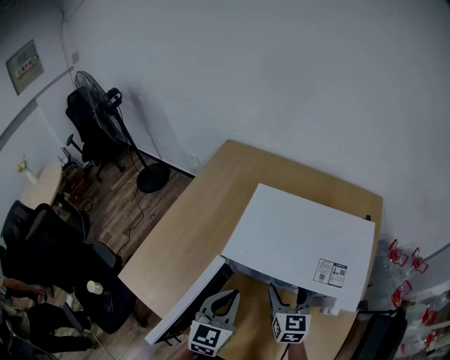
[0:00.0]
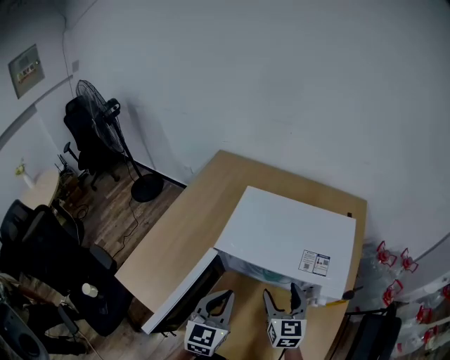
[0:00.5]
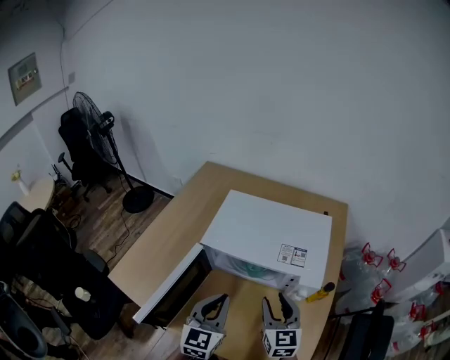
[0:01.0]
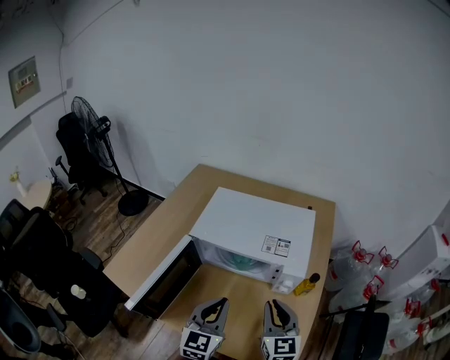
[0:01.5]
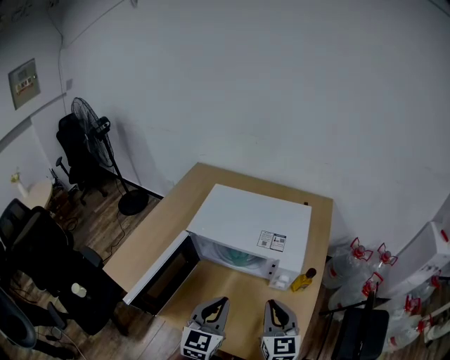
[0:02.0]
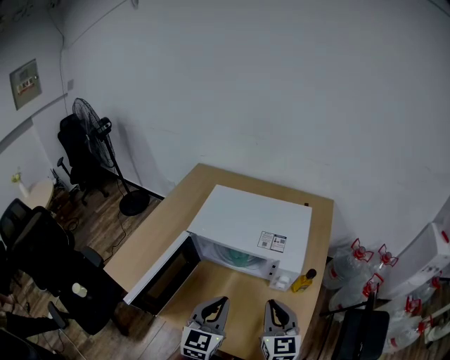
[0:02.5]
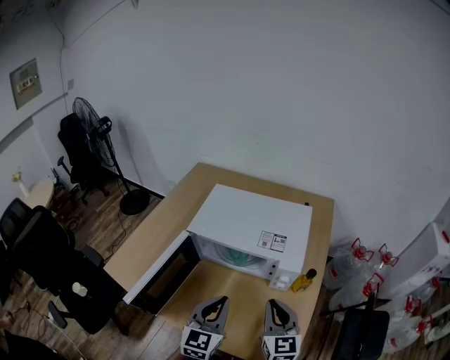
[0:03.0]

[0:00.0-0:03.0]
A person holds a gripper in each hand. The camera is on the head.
0:00.0 to 0:01.5: The two grippers go approximately 20 cm backward, to the right and upward. The right gripper closes.
0:01.5 to 0:03.0: There are only small adjustments of the grippers.

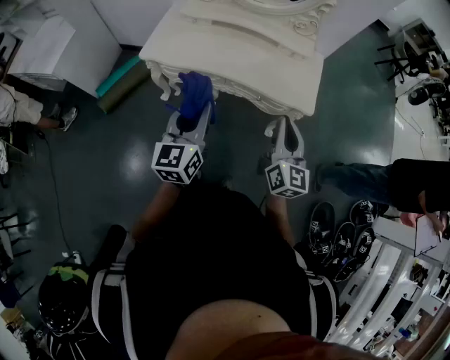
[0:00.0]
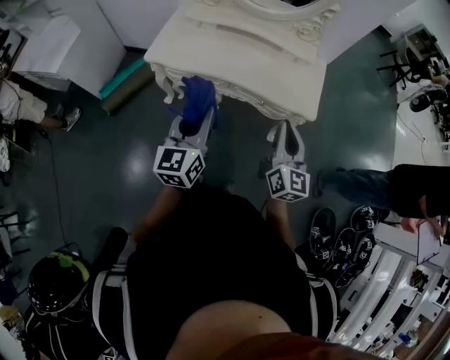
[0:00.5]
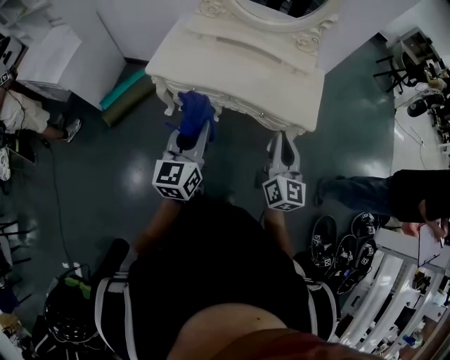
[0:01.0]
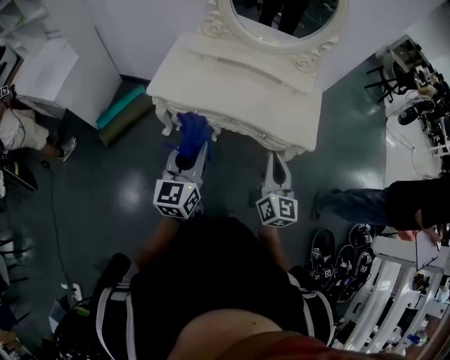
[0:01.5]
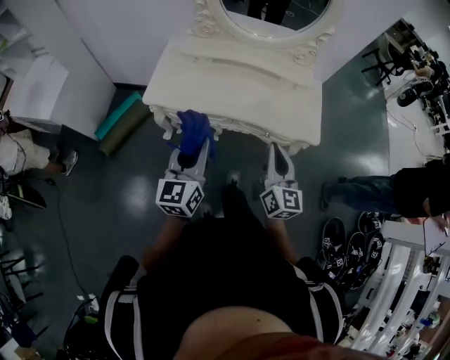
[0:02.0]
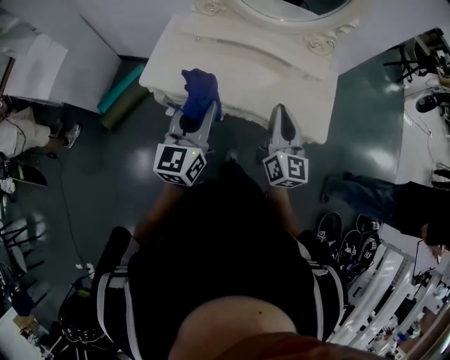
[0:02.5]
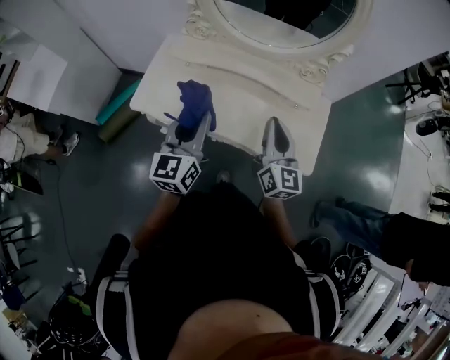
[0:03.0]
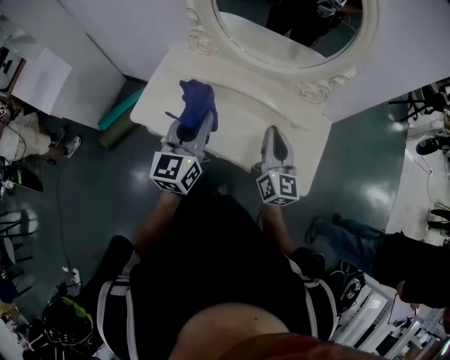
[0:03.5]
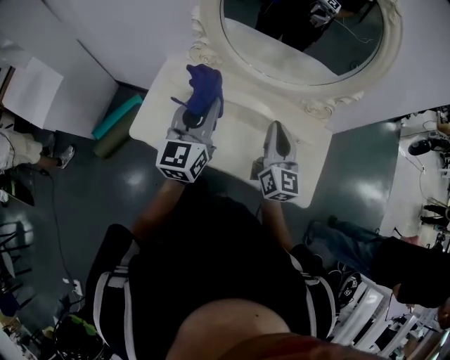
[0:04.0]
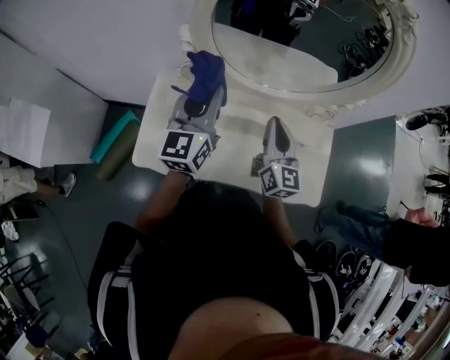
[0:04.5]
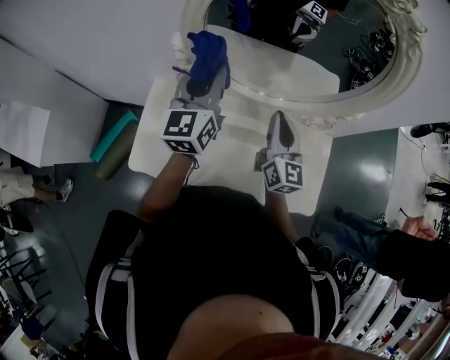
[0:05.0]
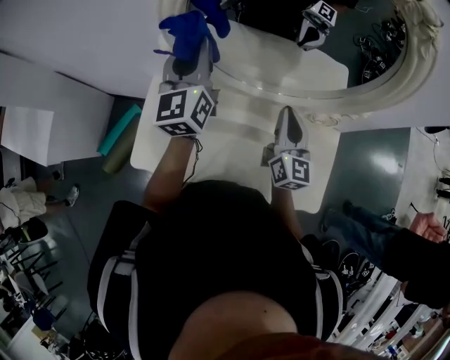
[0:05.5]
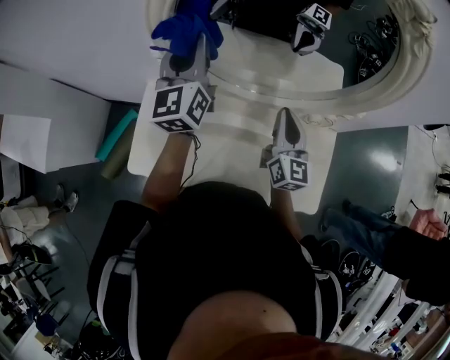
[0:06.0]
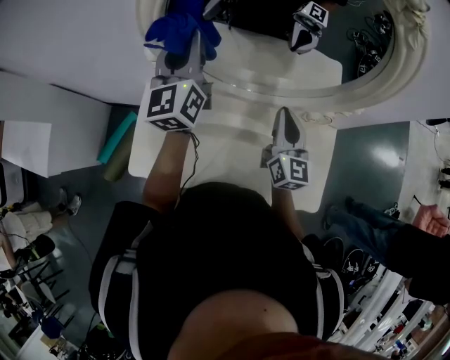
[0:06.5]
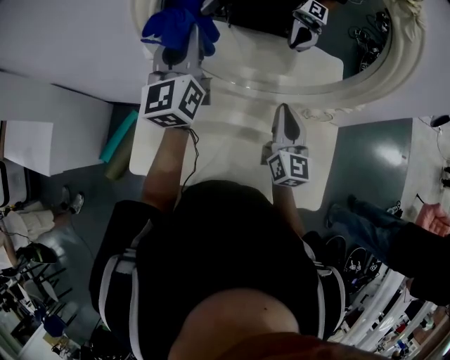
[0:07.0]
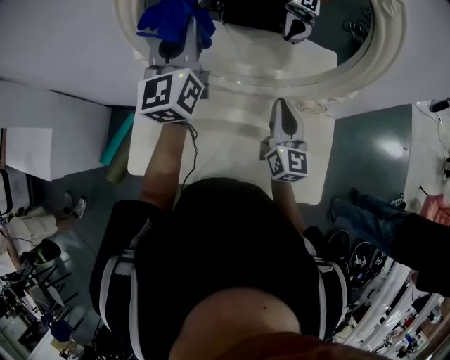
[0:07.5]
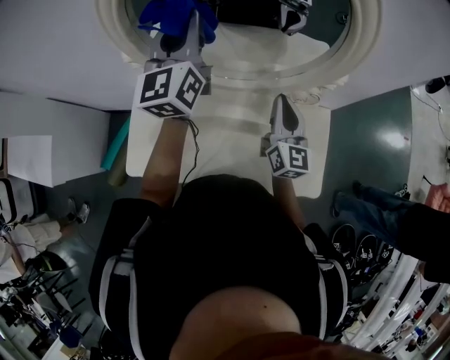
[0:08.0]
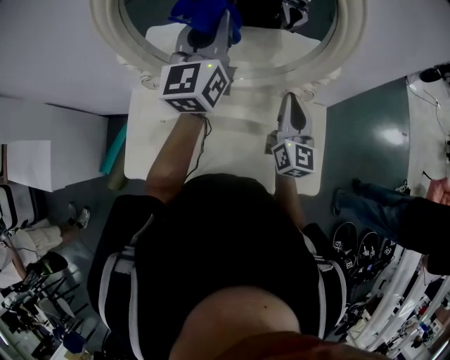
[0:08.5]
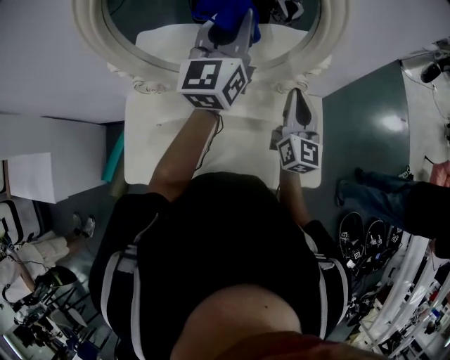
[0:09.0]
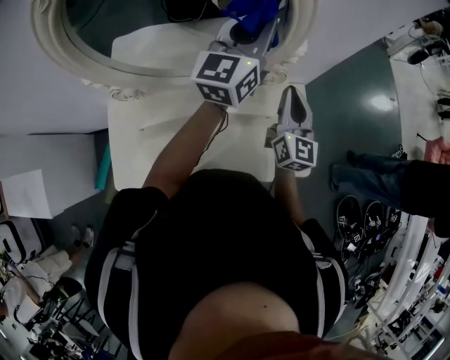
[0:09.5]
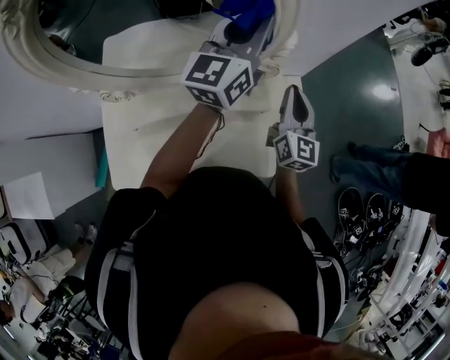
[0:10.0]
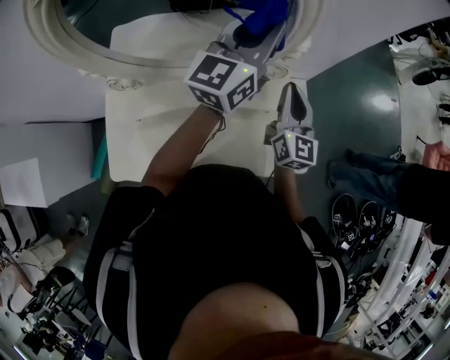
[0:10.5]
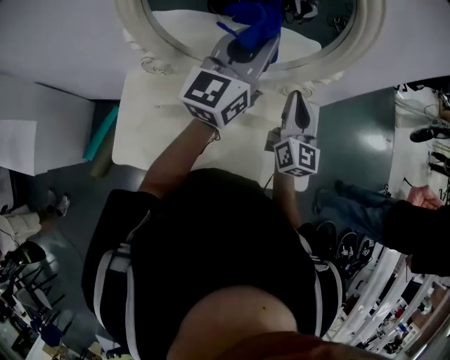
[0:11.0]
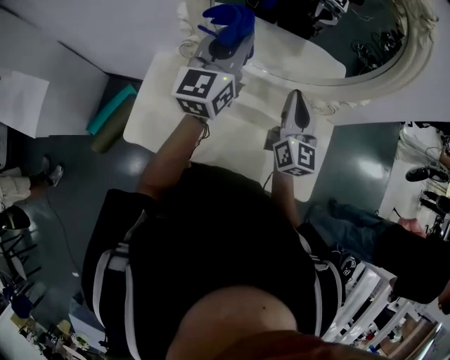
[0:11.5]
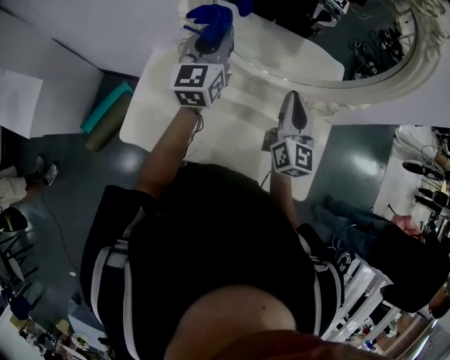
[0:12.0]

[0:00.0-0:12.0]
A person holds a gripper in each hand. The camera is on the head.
0:00.0 to 0:02.0: Both grippers move to the left and forward, about 10 cm.
0:02.0 to 0:04.0: The grippers both shift forward by some 35 cm.
0:04.0 to 0:06.0: The left gripper heads forward, covering approximately 25 cm. The right gripper heads forward, covering roughly 15 cm.
0:06.0 to 0:08.0: The grippers both shift to the right by some 10 cm.
0:08.0 to 0:10.0: The right gripper shifts by some 15 cm. Meanwhile the left gripper shifts by about 30 cm, and swivels about 30 degrees.
0:10.0 to 0:12.0: The right gripper ends up some 25 cm from where it was, and changes its angle by about 20 degrees, while the left gripper changes place by approximately 40 cm, and rotates about 40 degrees.

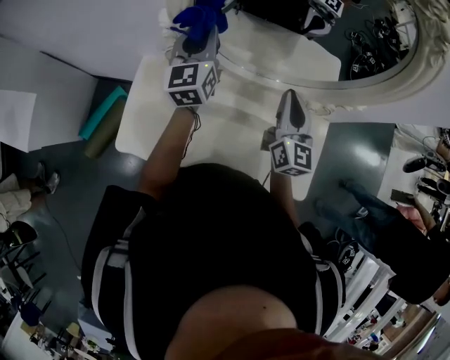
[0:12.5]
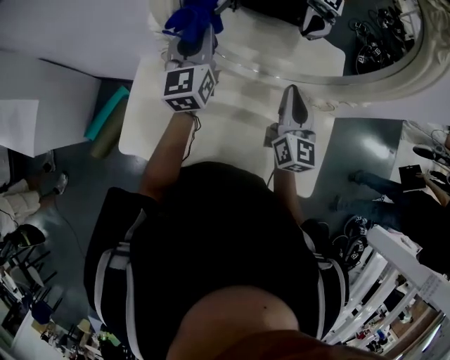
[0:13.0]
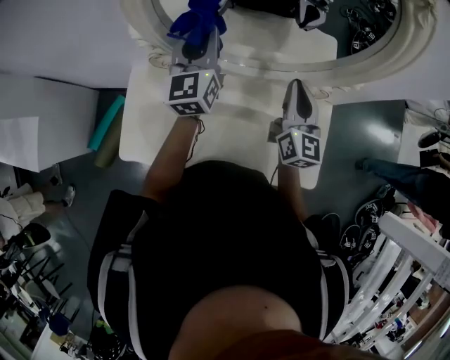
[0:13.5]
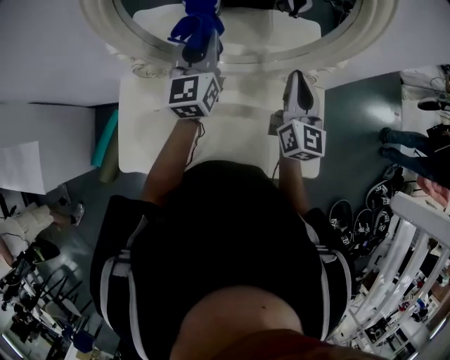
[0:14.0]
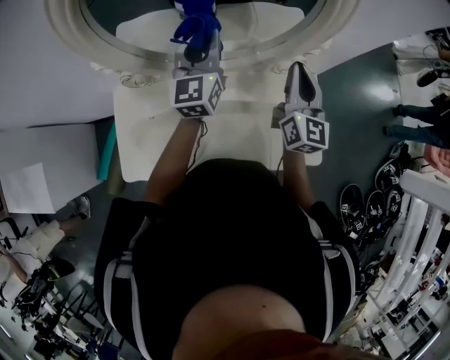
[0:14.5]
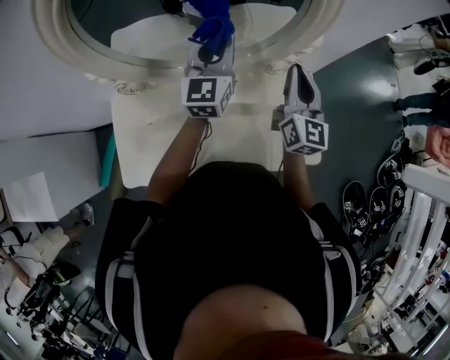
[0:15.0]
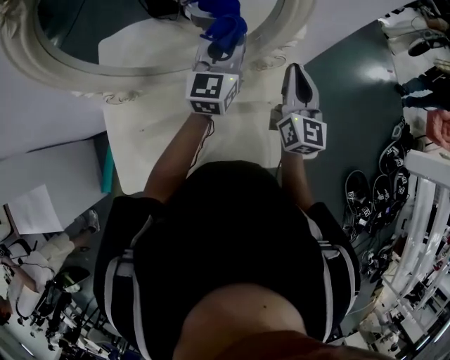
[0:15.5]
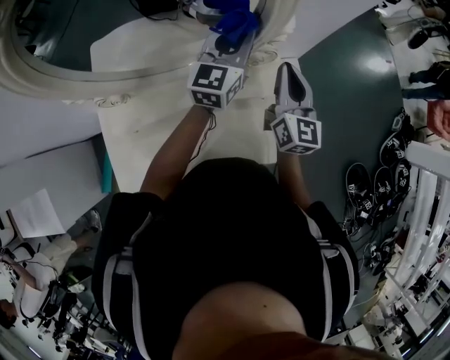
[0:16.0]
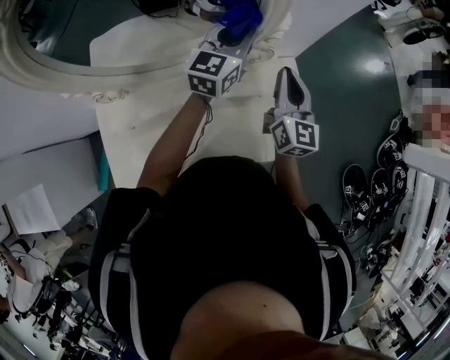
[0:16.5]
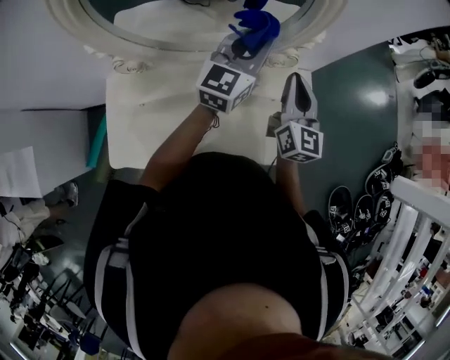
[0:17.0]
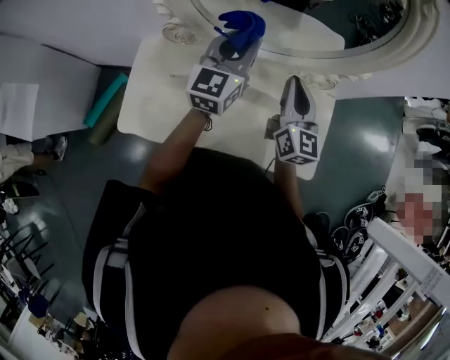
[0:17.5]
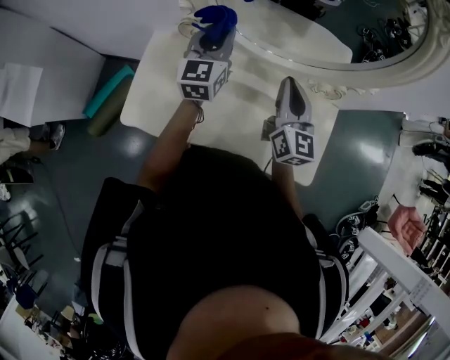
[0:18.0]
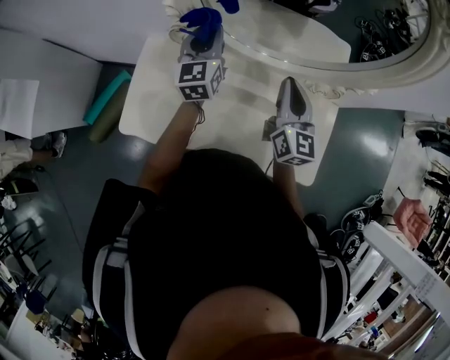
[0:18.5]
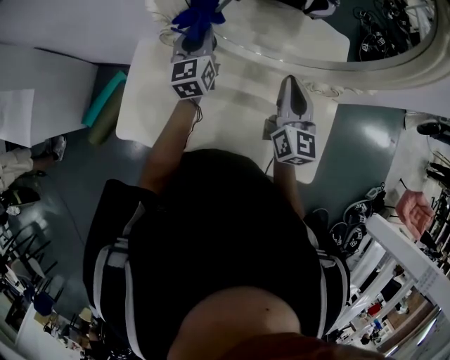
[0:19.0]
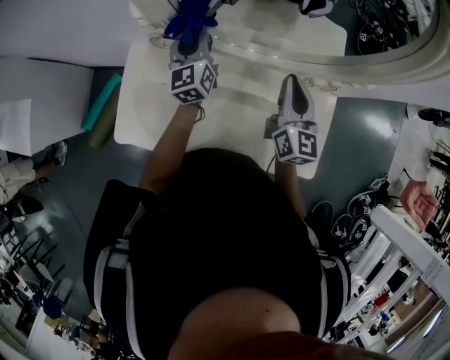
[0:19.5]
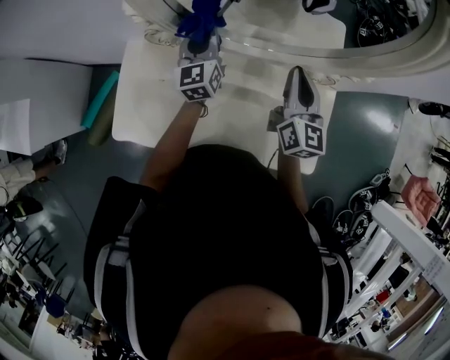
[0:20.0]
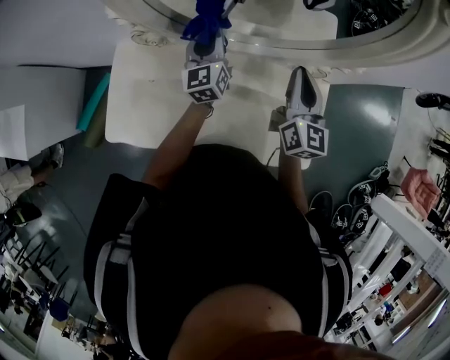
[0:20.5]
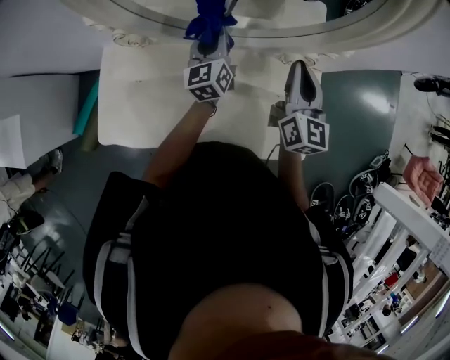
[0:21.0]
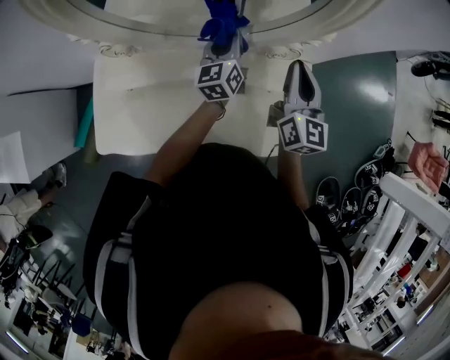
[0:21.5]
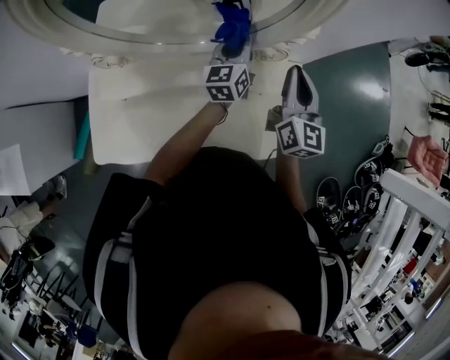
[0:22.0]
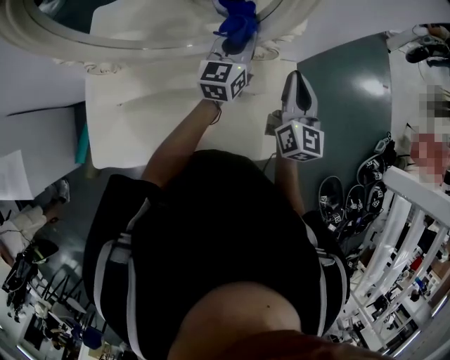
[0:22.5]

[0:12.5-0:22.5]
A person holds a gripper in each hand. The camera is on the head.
0:12.5 to 0:14.5: The two grippers go approximately 15 cm to the right.
0:14.5 to 0:16.5: The right gripper shifts about 10 cm to the right. The left gripper shifts approximately 20 cm to the right, and rotates some 30 degrees.
0:16.5 to 0:18.5: The right gripper moves some 25 cm, and changes its angle by approximately 30 degrees. The left gripper changes place by approximately 40 cm, and rotates some 50 degrees.
0:18.5 to 0:20.5: The left gripper goes approximately 10 cm to the right and downward. The right gripper moves to the right, some 10 cm.
0:20.5 to 0:22.5: The right gripper moves to the right, about 15 cm. Meanwhile the left gripper goes approximately 25 cm to the right, and turns by roughly 30 degrees.

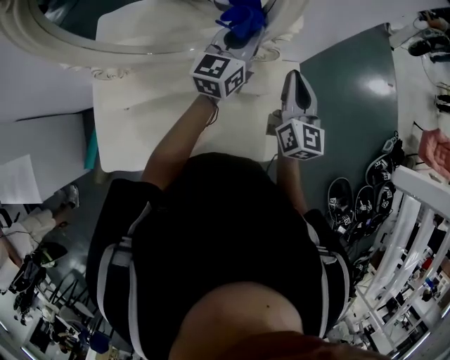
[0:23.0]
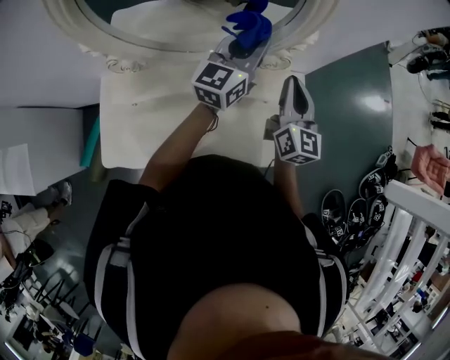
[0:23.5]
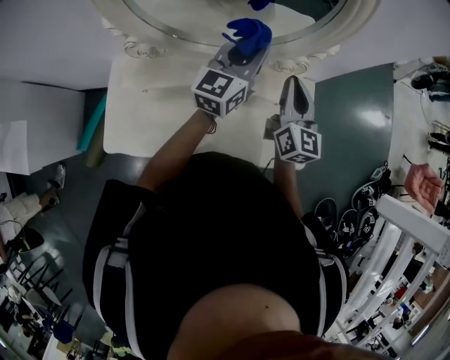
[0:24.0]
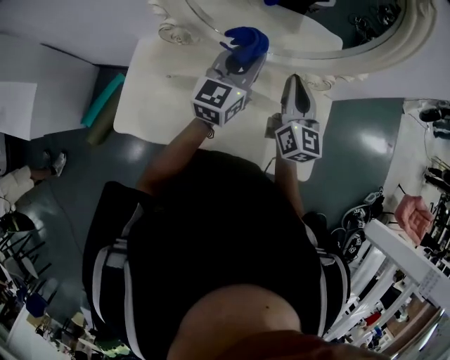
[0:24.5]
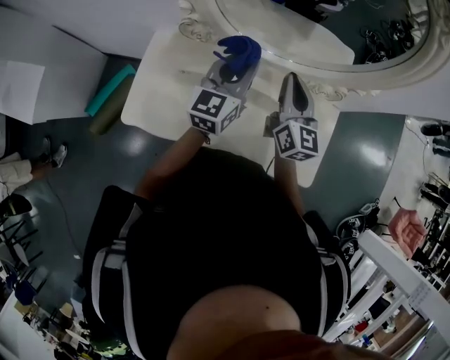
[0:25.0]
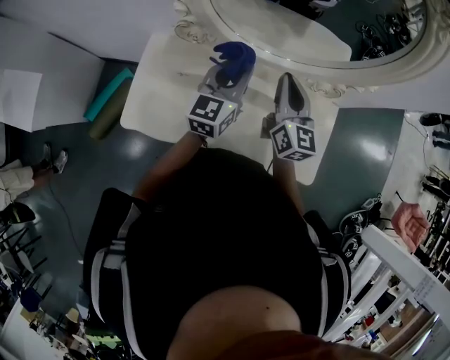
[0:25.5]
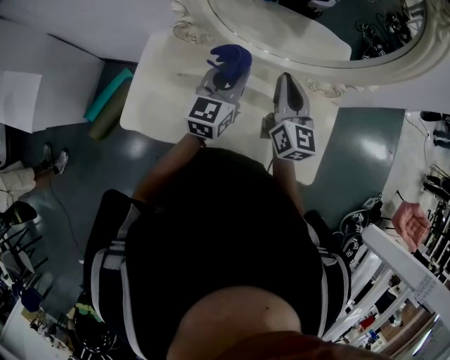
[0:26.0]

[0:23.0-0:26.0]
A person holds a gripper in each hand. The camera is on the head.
0:23.0 to 0:24.5: The right gripper shifts about 20 cm to the left, while the left gripper shifts some 25 cm to the left and backward.
0:24.5 to 0:26.0: The two grippers go approximately 5 cm to the left.
